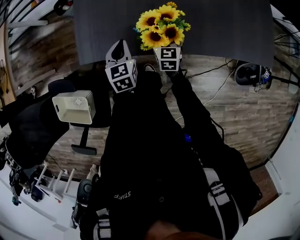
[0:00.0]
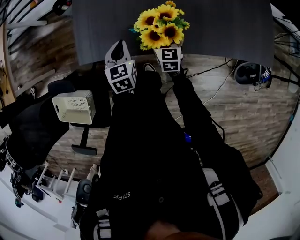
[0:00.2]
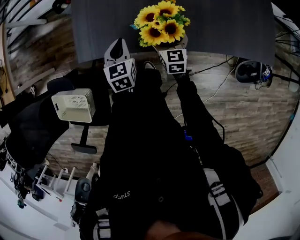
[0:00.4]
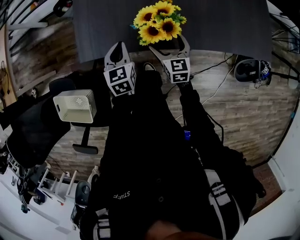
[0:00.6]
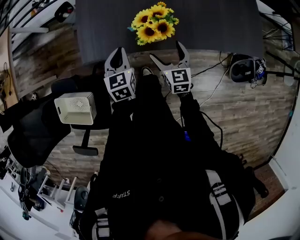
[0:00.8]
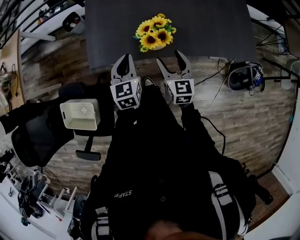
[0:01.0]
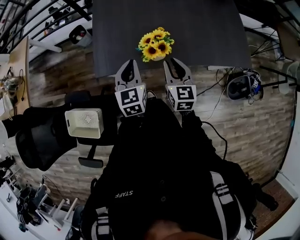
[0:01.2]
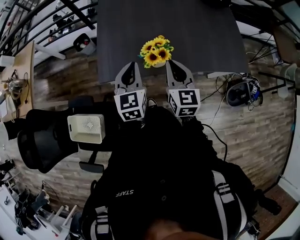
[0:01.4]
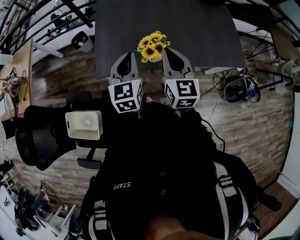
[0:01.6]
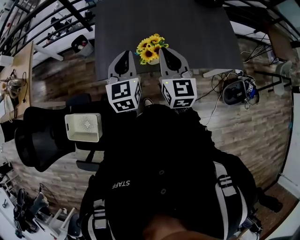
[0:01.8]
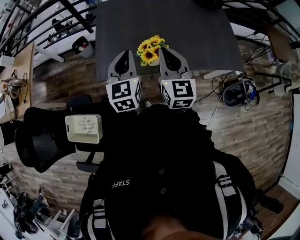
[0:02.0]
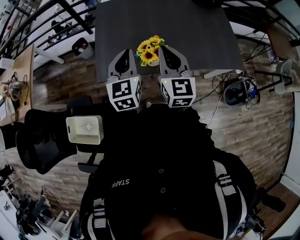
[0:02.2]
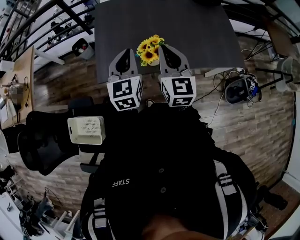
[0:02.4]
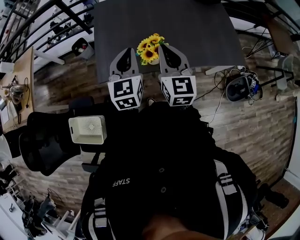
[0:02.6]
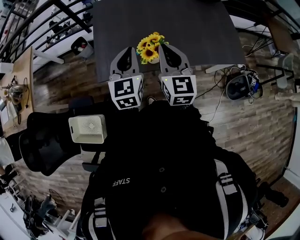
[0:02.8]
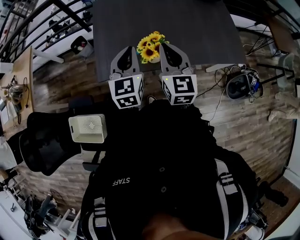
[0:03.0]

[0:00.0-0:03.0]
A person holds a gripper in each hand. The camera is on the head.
0:00.0 to 0:01.6: Both grippers travel together upward, roughly 35 cm. The right gripper swivels roughly 20 degrees, and closes up, while the left gripper rotates roughly 20 degrees.
0:01.6 to 0:03.0: The grippers move only a little.

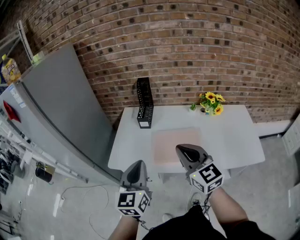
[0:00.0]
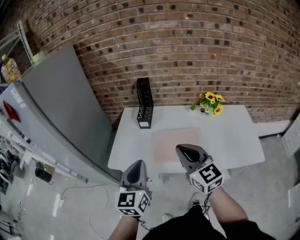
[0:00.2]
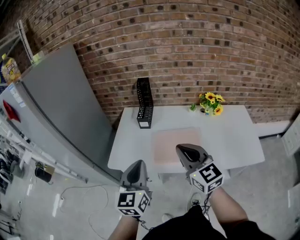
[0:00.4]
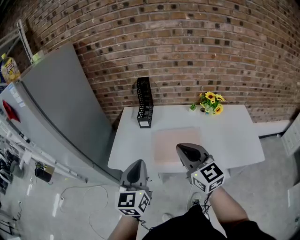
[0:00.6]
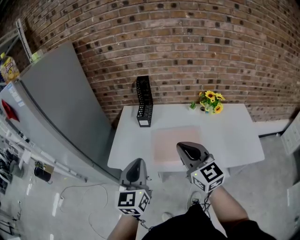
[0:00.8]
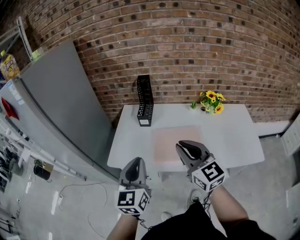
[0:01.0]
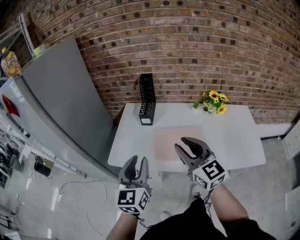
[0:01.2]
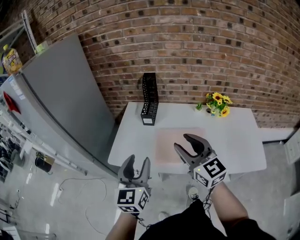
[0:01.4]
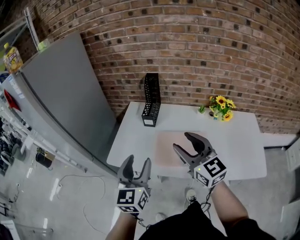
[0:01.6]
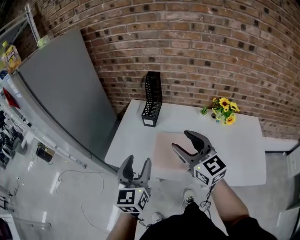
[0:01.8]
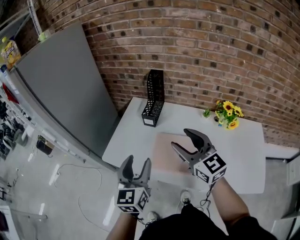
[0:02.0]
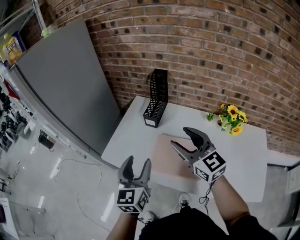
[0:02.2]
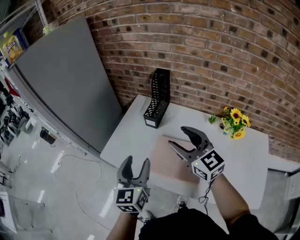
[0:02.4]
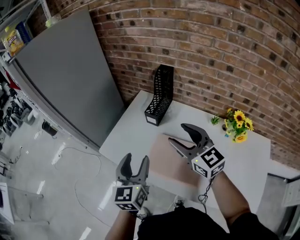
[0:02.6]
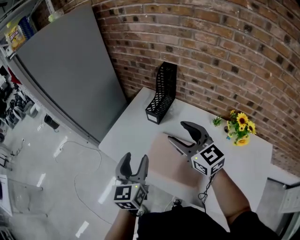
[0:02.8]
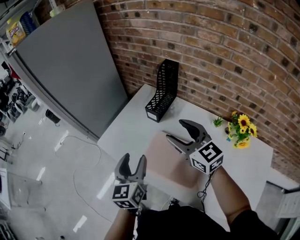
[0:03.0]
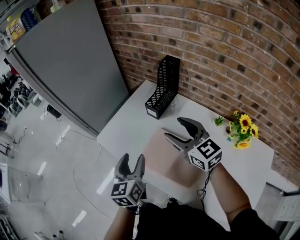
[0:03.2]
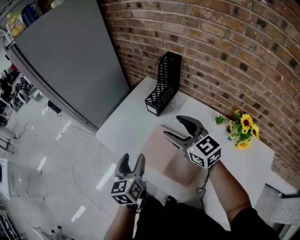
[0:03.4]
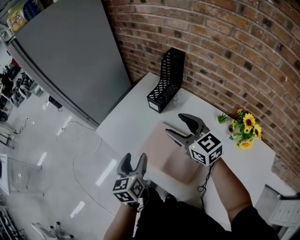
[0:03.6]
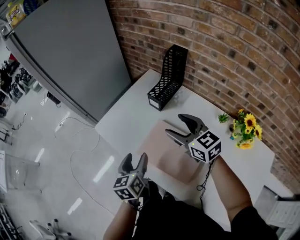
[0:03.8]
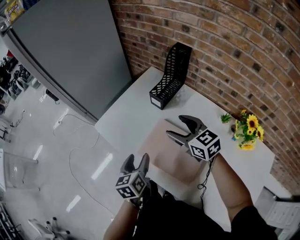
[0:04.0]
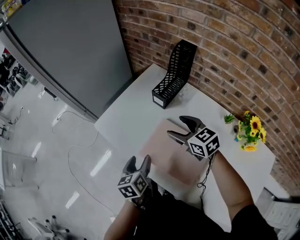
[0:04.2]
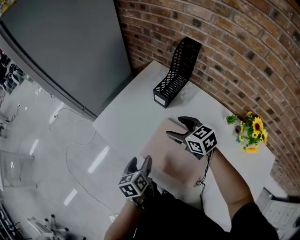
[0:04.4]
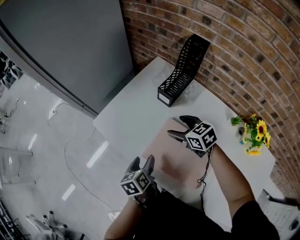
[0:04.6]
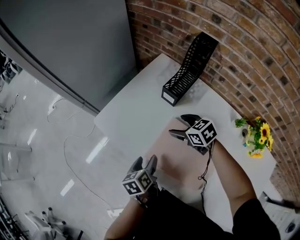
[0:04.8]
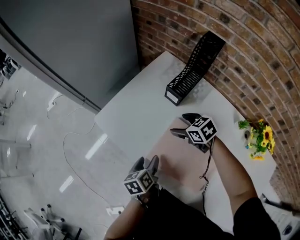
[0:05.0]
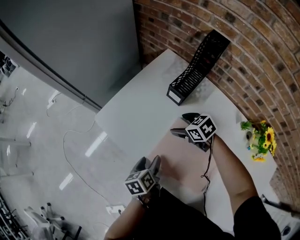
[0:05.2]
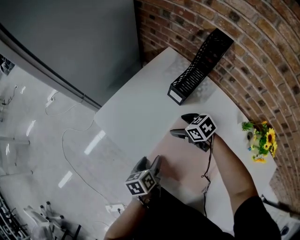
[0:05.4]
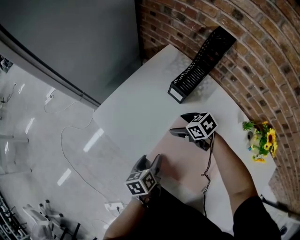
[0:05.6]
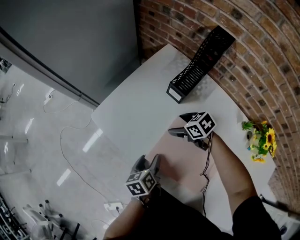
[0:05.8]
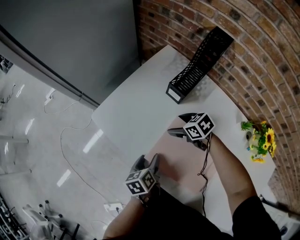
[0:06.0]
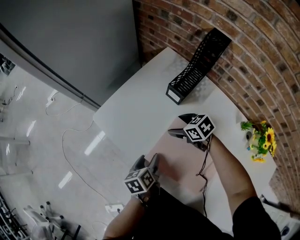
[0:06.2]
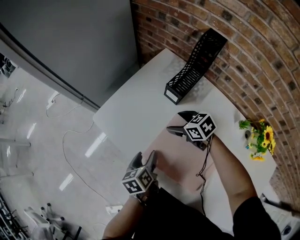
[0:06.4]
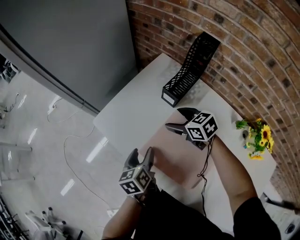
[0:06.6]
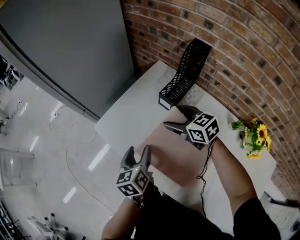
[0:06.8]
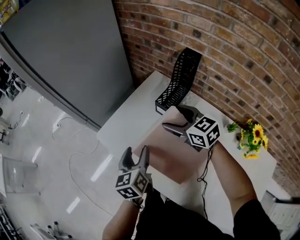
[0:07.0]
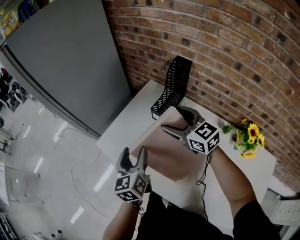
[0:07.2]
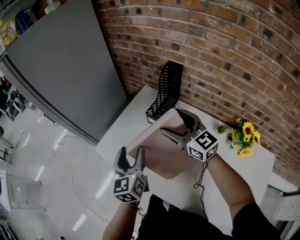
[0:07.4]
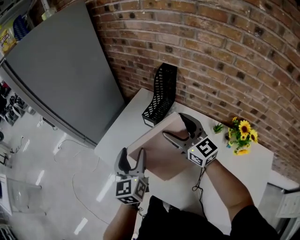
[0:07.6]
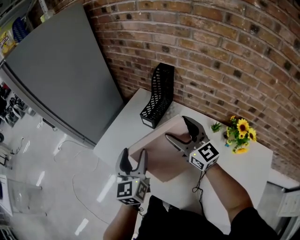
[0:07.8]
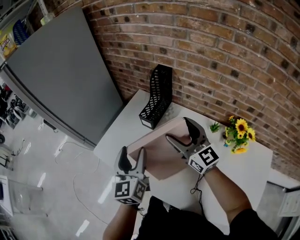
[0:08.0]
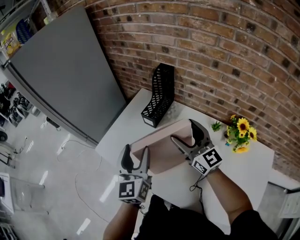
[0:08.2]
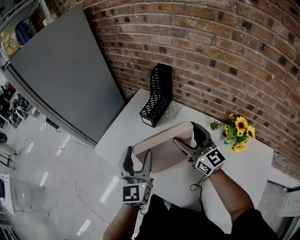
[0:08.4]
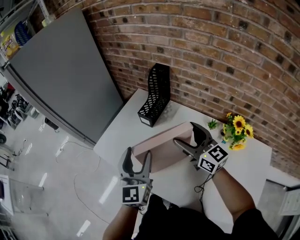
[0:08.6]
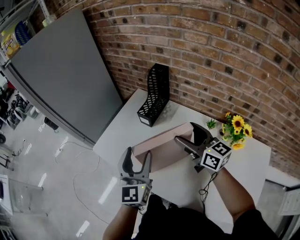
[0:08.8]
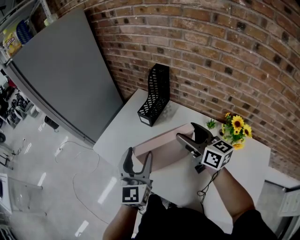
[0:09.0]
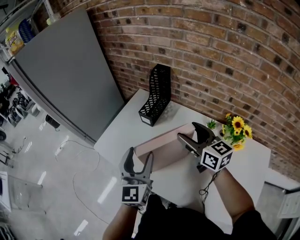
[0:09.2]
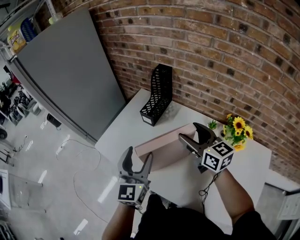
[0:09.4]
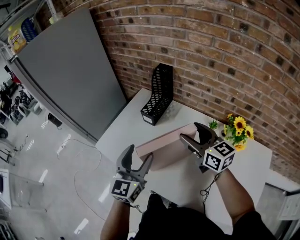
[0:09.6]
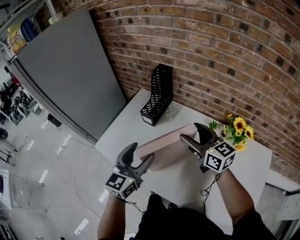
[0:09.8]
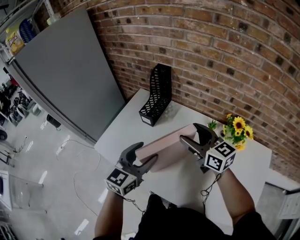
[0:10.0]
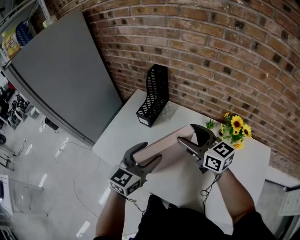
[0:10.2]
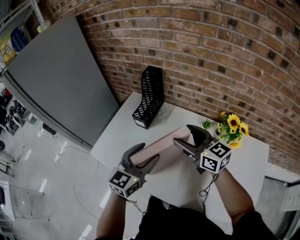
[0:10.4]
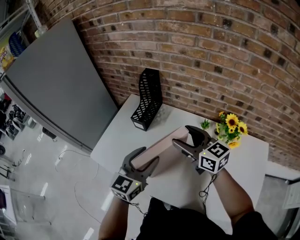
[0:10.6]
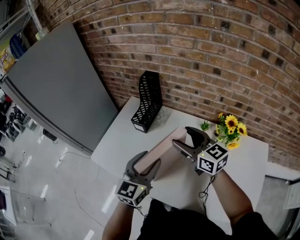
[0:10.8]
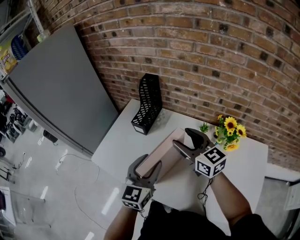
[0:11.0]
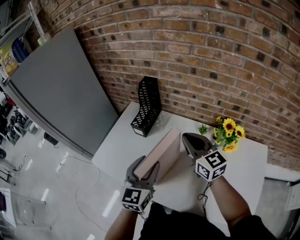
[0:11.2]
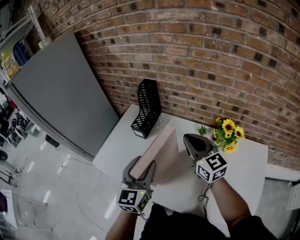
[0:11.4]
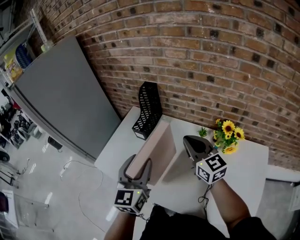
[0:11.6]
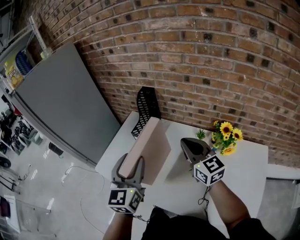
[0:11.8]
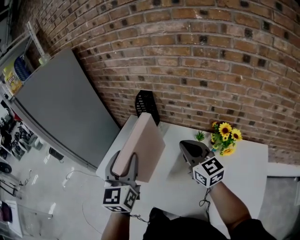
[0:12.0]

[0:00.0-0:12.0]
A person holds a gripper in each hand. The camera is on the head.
0:00.0 to 0:01.6: The right gripper is displaced forward by approximately 5 cm, and opens up. Meanwhile the left gripper opens.
0:01.6 to 0:03.0: The right gripper ends up about 20 cm from where it was, and turns by about 30 degrees. The left gripper moves roughly 15 cm, and turns by about 30 degrees.
0:03.0 to 0:04.4: Both grippers move downward, some 20 cm. The left gripper swivels some 30 degrees. The right gripper changes its angle by some 30 degrees.
0:04.4 to 0:06.0: The right gripper goes approximately 15 cm downward, and rotates roughly 30 degrees; the left gripper travels downward by approximately 5 cm.
0:06.0 to 0:07.6: The grippers both shift upward by roughly 30 cm. The right gripper tips its fingers upward by some 50 degrees. The left gripper angles its fingers upward, by some 30 degrees.
0:07.6 to 0:09.0: The left gripper is displaced backward by roughly 5 cm, while the right gripper goes roughly 10 cm backward and to the right, and rotates roughly 30 degrees.
0:09.0 to 0:10.4: The left gripper travels to the right by approximately 5 cm, and swivels about 30 degrees.
0:10.4 to 0:12.0: The left gripper travels upward by some 15 cm, and swivels roughly 30 degrees, while the right gripper changes place by roughly 5 cm, and closes its fingers.

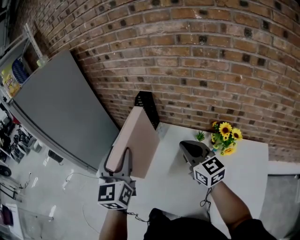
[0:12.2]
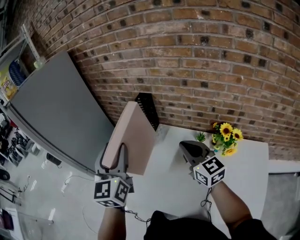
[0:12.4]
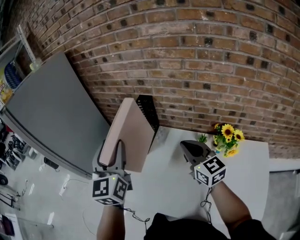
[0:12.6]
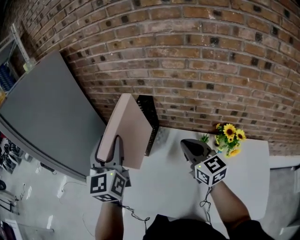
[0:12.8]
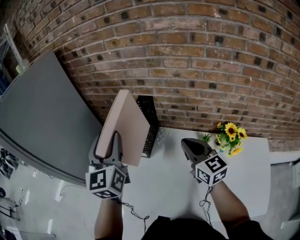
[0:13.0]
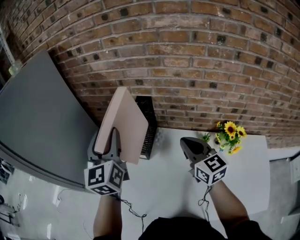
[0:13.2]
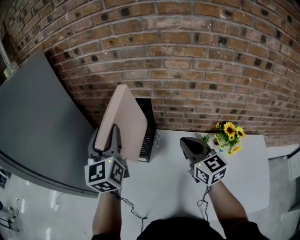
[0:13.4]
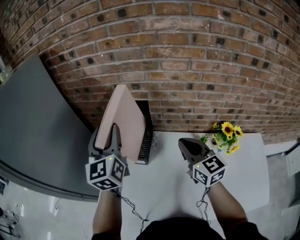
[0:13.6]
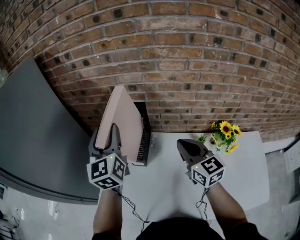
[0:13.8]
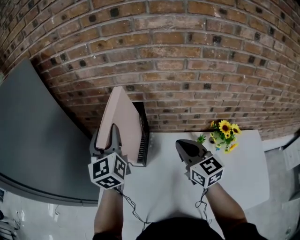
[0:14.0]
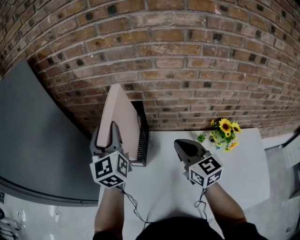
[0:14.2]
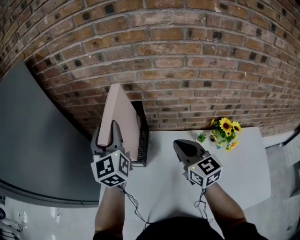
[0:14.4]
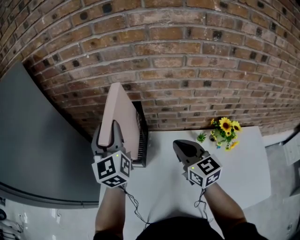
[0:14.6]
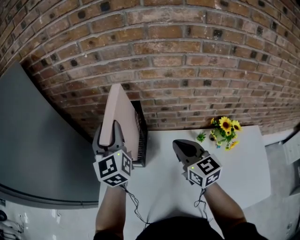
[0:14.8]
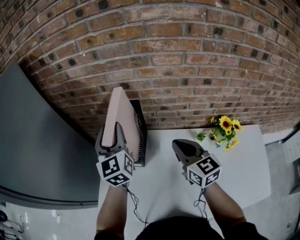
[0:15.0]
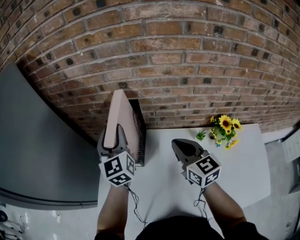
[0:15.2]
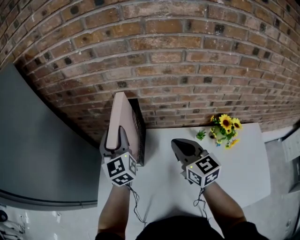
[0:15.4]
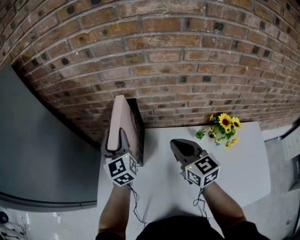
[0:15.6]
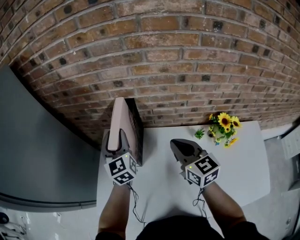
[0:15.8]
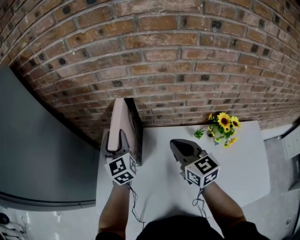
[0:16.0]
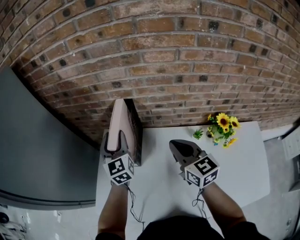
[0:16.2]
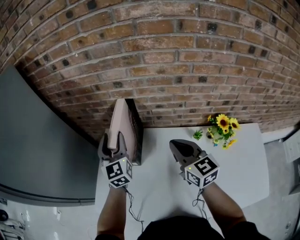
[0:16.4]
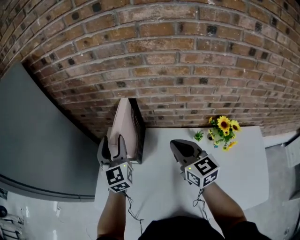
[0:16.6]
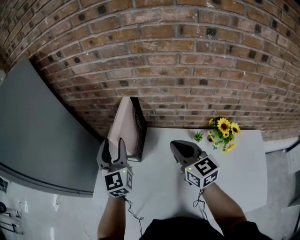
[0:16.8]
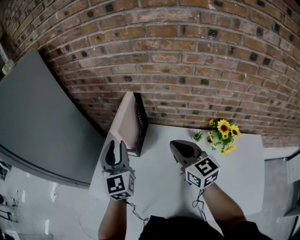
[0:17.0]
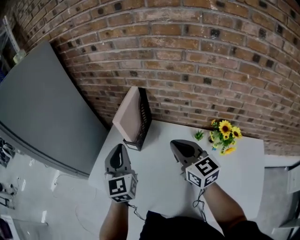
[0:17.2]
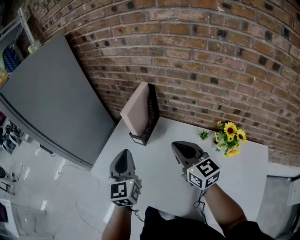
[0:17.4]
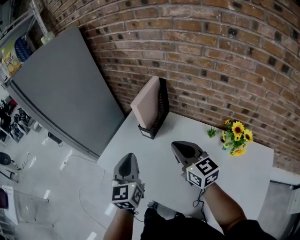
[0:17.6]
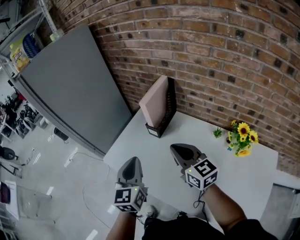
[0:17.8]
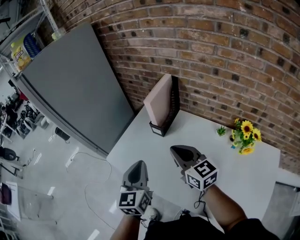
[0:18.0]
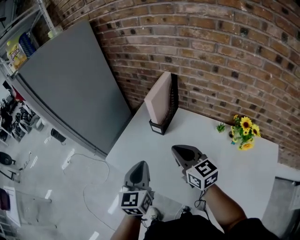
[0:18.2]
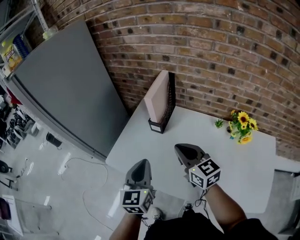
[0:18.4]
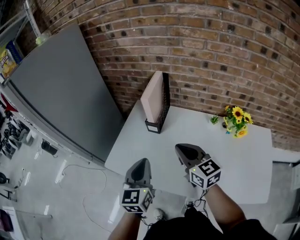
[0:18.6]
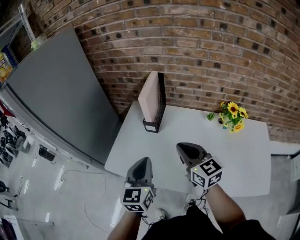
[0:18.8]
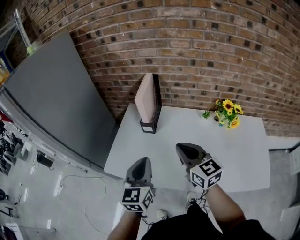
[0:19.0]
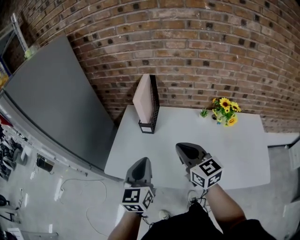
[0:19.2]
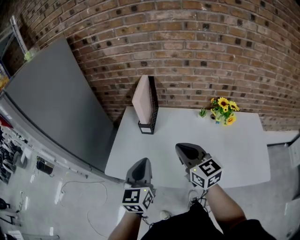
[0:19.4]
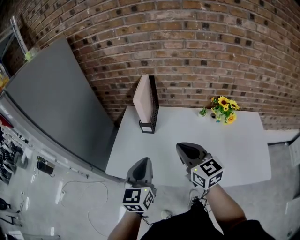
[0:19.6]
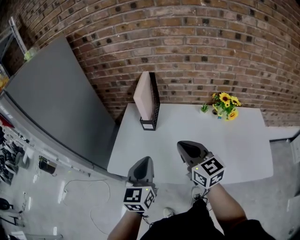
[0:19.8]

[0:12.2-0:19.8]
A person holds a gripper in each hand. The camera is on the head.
0:12.2 to 0:13.8: The right gripper travels forward and to the left by roughly 15 cm. The left gripper moves forward, about 25 cm.
0:13.8 to 0:15.2: The left gripper is displaced downward by roughly 5 cm.
0:15.2 to 0:16.8: The left gripper travels backward by about 10 cm.
0:16.8 to 0:18.2: The right gripper goes approximately 15 cm to the left and backward, and changes its angle by about 20 degrees, while the left gripper travels backward by some 25 cm, and closes.
0:18.2 to 0:19.8: The right gripper moves backward, roughly 10 cm, and rotates approximately 20 degrees. The left gripper swivels roughly 20 degrees.

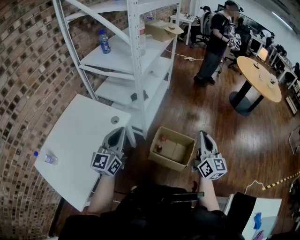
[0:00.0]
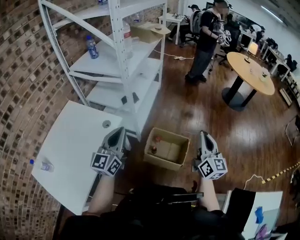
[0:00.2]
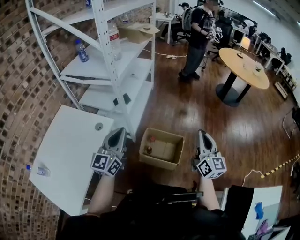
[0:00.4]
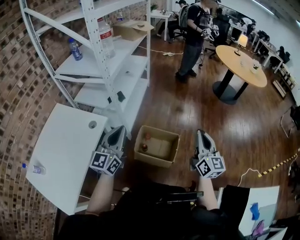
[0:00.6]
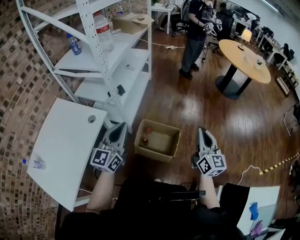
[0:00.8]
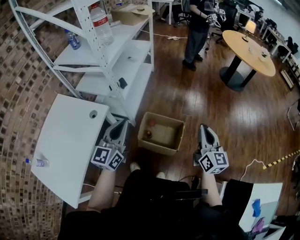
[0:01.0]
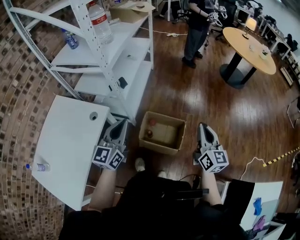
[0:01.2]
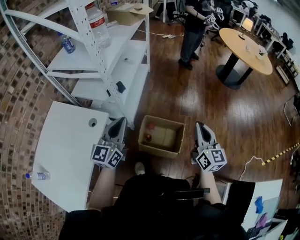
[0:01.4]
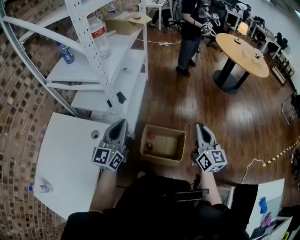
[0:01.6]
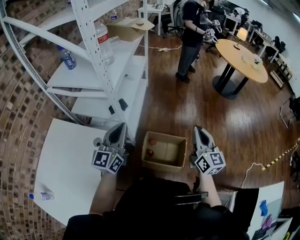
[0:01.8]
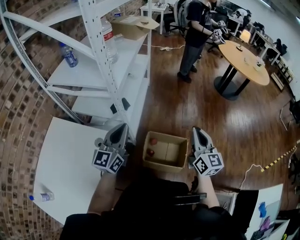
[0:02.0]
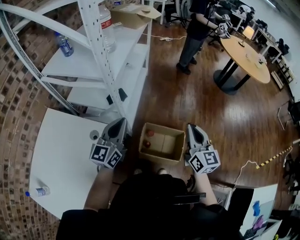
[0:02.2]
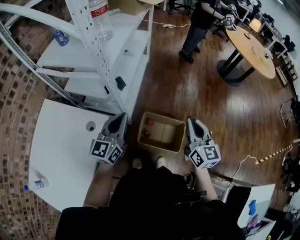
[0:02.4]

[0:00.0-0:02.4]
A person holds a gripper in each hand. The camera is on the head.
0:00.0 to 0:01.2: The right gripper moves to the right and downward, some 10 cm. Meanwhile the left gripper travels to the right and forward by about 15 cm.
0:01.2 to 0:02.4: The right gripper shifts some 20 cm to the left and forward. The left gripper travels forward and to the left by about 15 cm.
